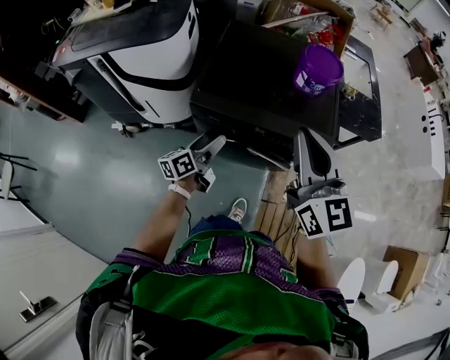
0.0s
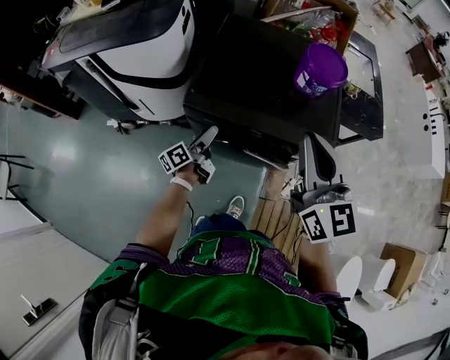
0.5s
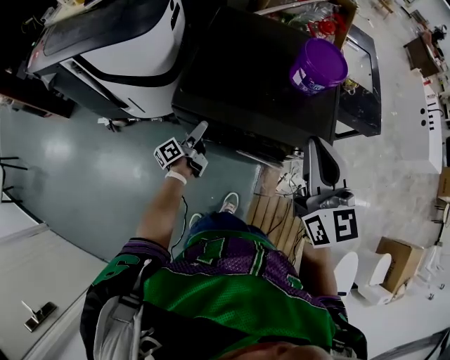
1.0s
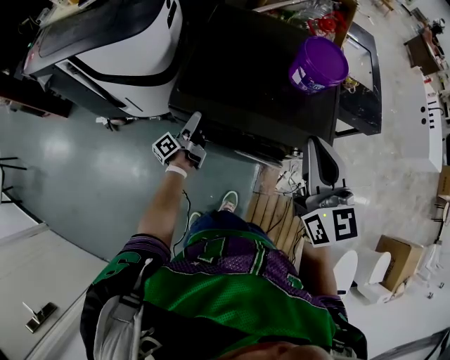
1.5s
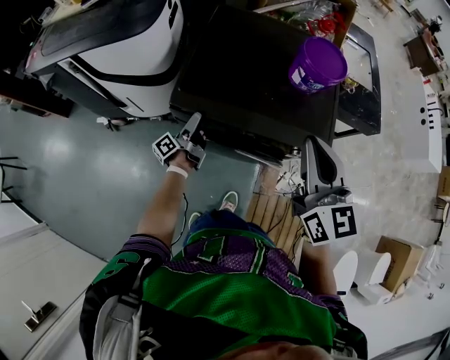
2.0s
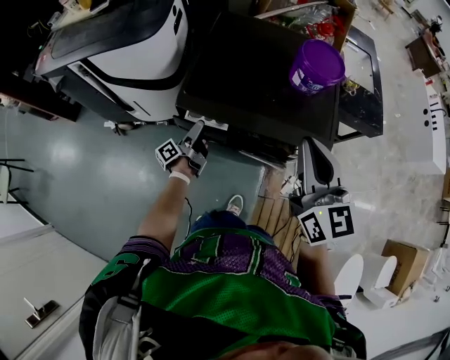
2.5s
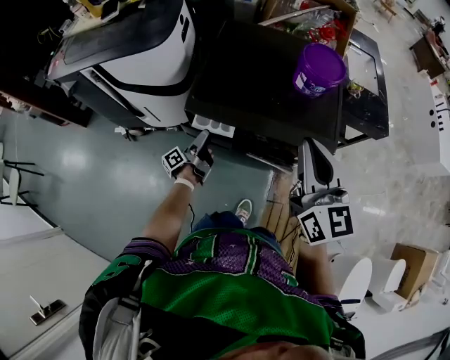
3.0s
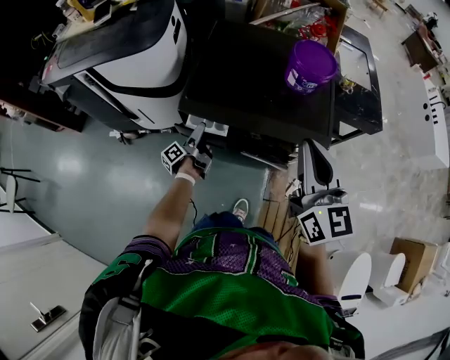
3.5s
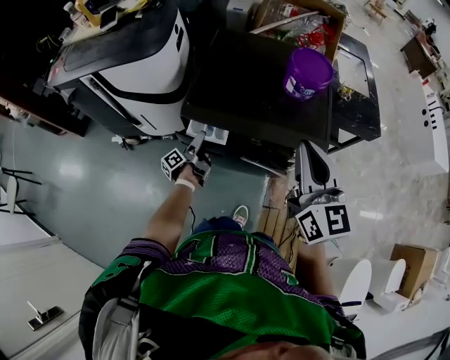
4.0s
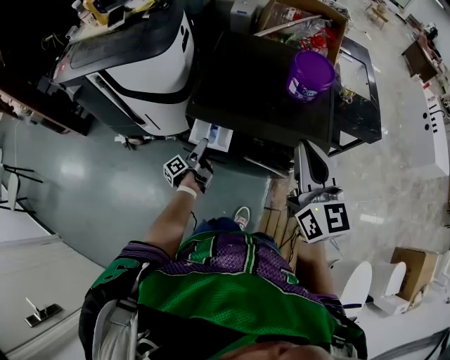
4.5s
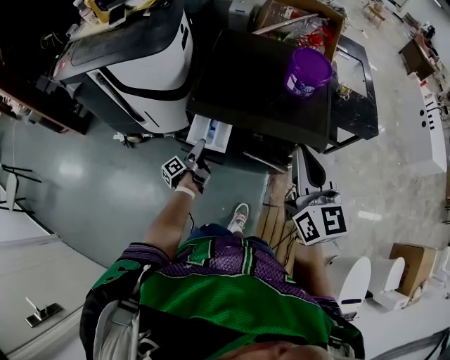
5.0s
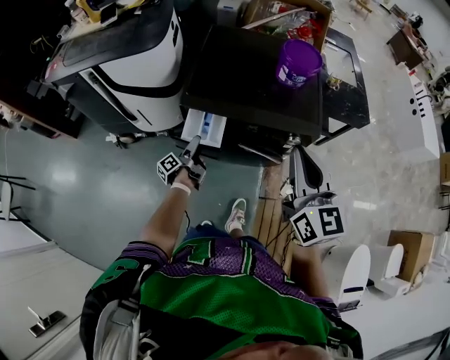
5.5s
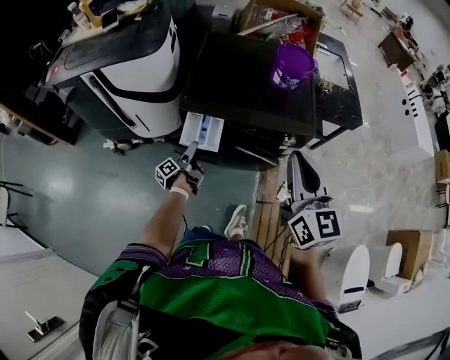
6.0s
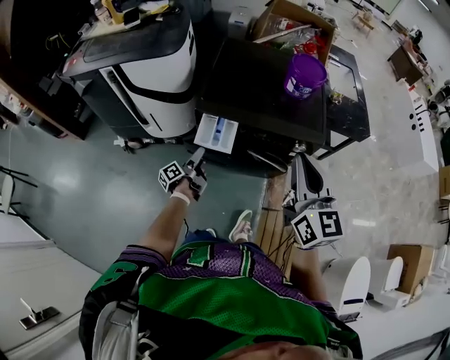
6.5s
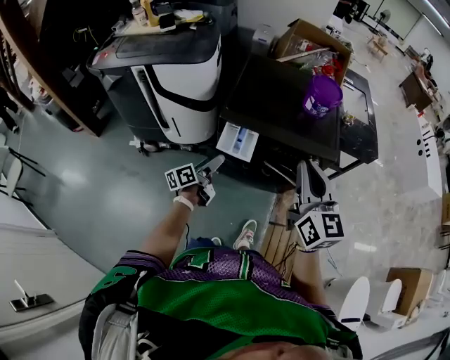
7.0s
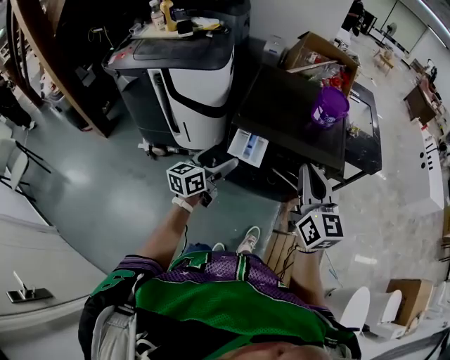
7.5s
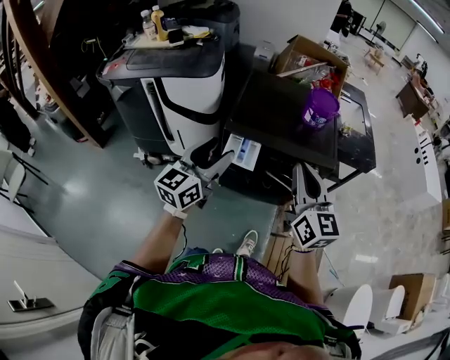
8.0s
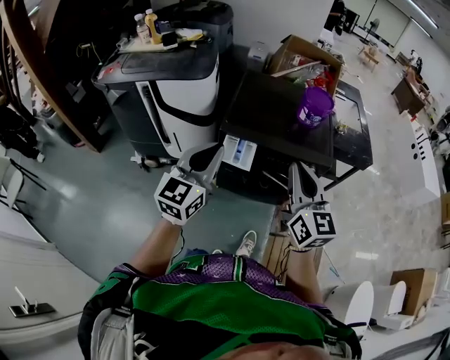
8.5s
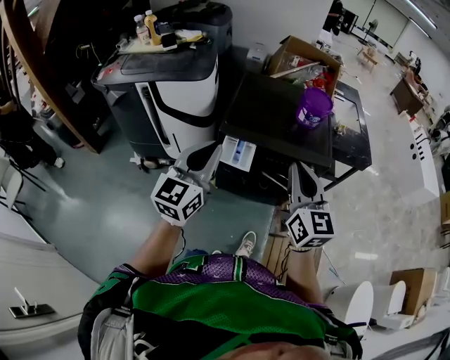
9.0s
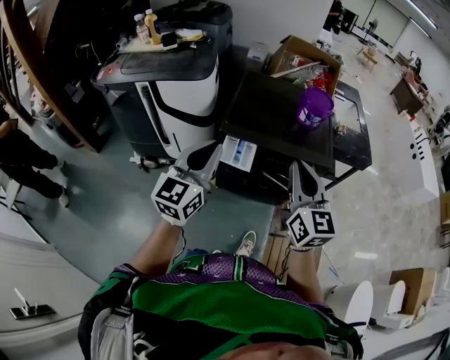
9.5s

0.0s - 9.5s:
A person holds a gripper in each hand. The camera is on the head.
0.0s - 2.0s: The right gripper shifts some 10 cm forward and downward, while the left gripper moves downward and forward, approximately 15 cm, and swivels roughly 40 degrees.
2.0s - 4.0s: Both grippers travel together backward, roughly 5 cm.
4.0s - 5.5s: The grippers both shift backward by about 5 cm.
5.5s - 7.5s: The left gripper shifts about 30 cm upward and backward, and rotates around the line of its fingers by some 60 degrees, clockwise from behind. Meanwhile the right gripper travels to the left and backward by roughly 10 cm.
7.5s - 9.5s: The left gripper travels upward by approximately 15 cm, turns by approximately 30 degrees, and closes.

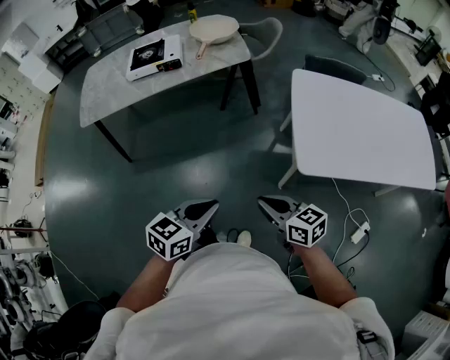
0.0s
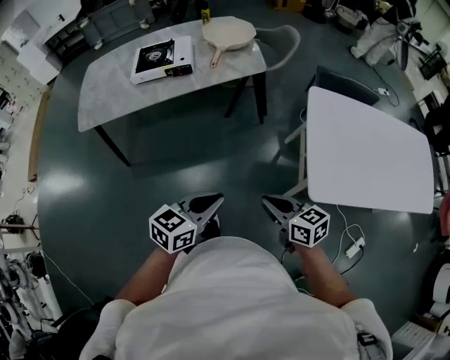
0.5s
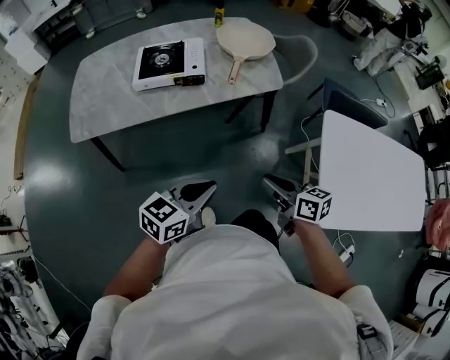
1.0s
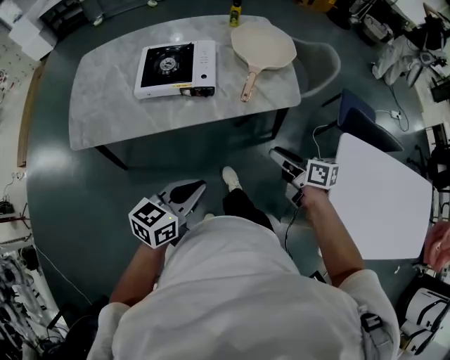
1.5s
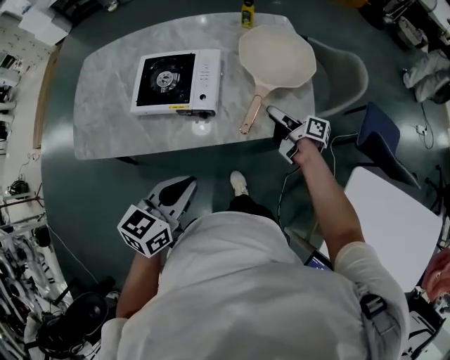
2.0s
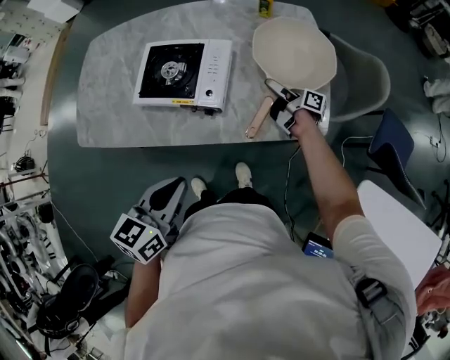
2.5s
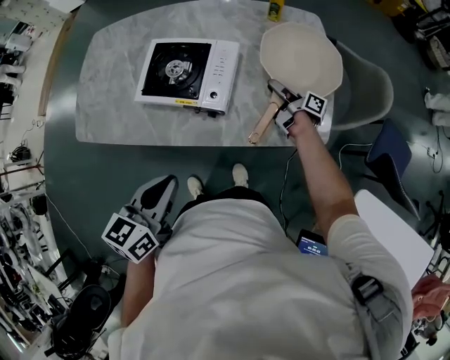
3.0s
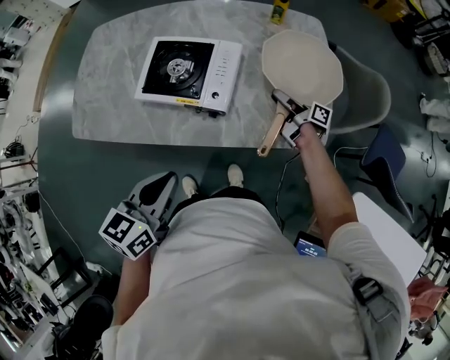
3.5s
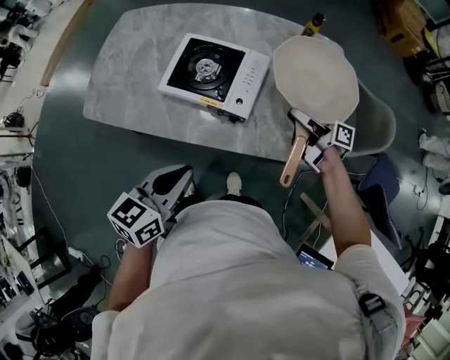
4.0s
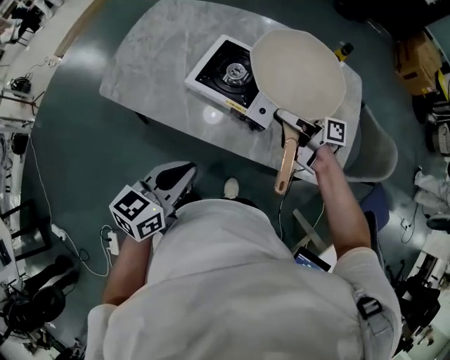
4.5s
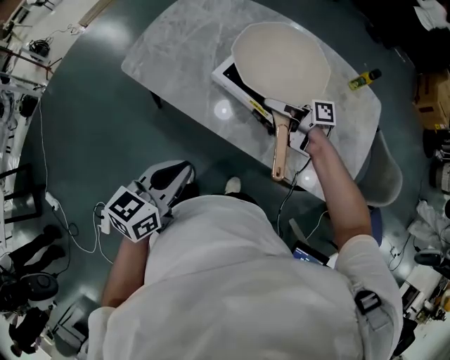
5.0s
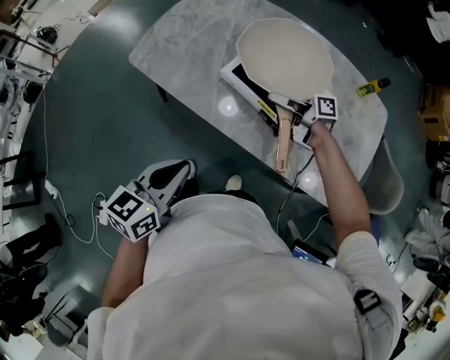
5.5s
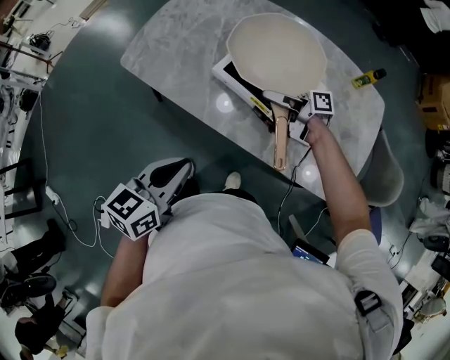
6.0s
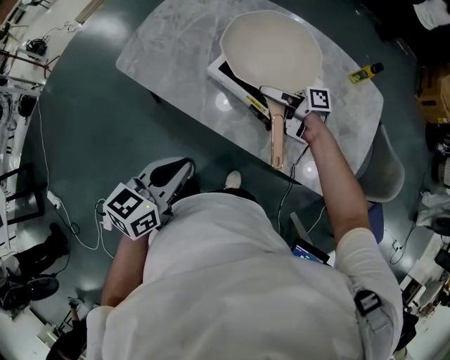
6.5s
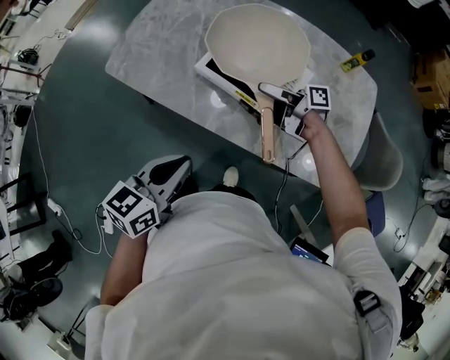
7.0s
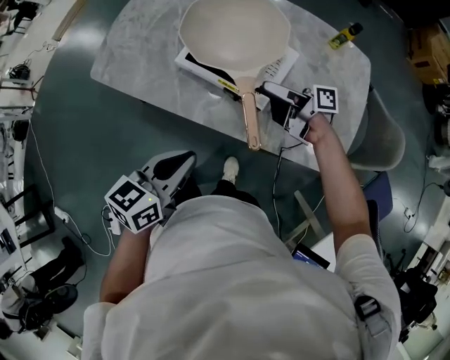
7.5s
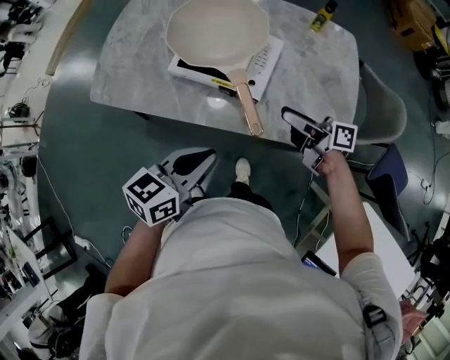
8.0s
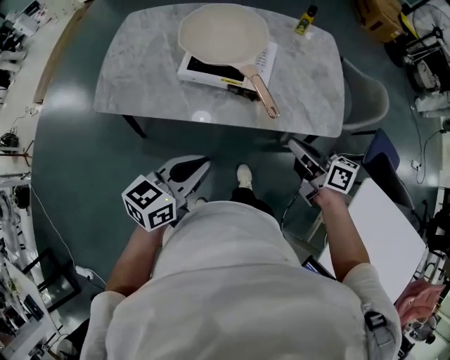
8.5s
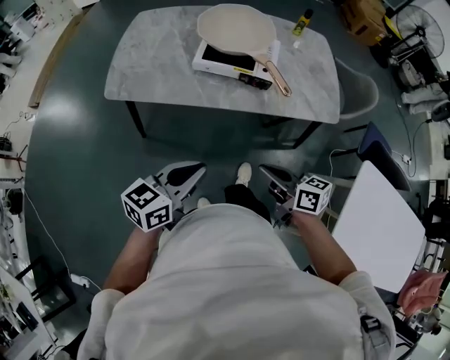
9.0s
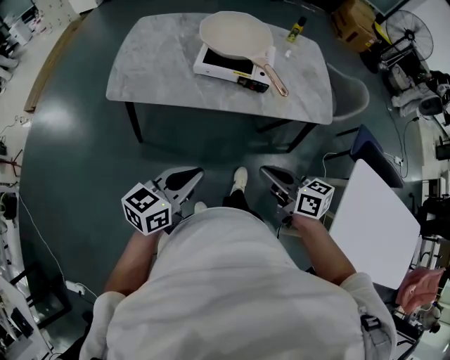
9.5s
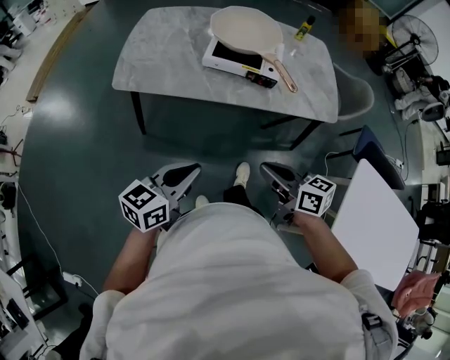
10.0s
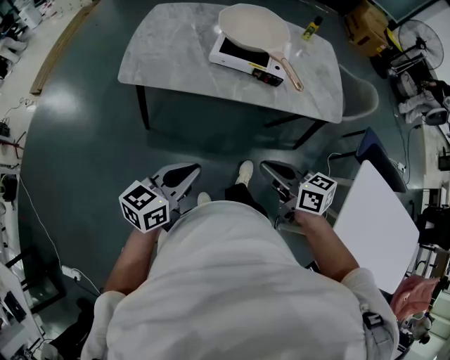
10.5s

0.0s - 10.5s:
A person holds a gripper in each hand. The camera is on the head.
0.0s - 2.0s: Both grippers are carried forward, roughly 70 cm. The left gripper swivels about 20 degrees, while the right gripper rolls clockwise, seen from behind, by approximately 40 degrees, and opens its fingers.
2.0s - 4.0s: The right gripper heads forward, to the left and upward, covering approximately 10 cm, swivels about 20 degrees, and closes; the left gripper moves to the left and forward, some 10 cm.
4.0s - 6.5s: The right gripper shifts by roughly 25 cm, swivels approximately 40 degrees, and opens up, while the left gripper shifts by roughly 10 cm.
6.5s - 8.5s: The left gripper swivels roughly 30 degrees; the right gripper ends up approximately 30 cm from where it was, changes its angle by about 50 degrees, and closes.
8.5s - 10.5s: Both grippers travel together backward and to the left, roughly 25 cm.

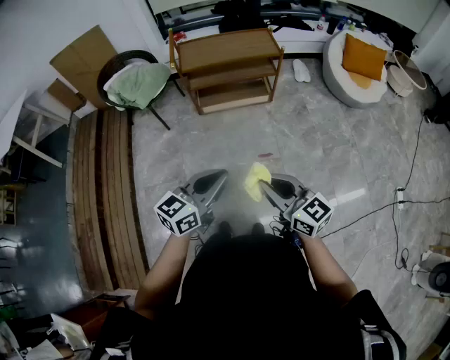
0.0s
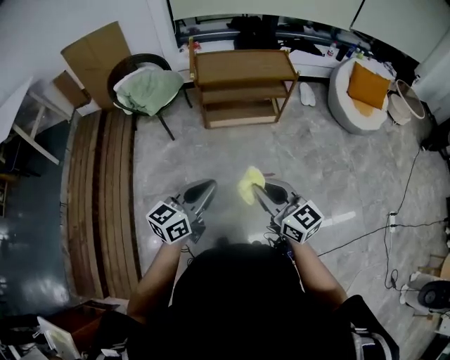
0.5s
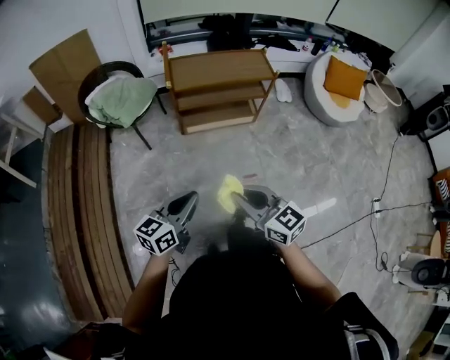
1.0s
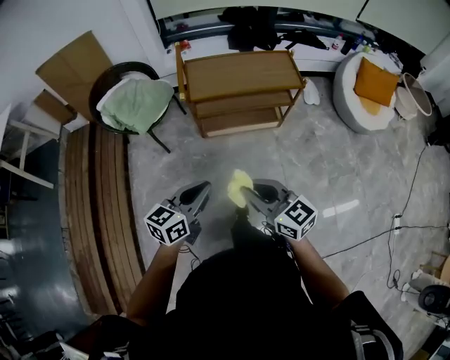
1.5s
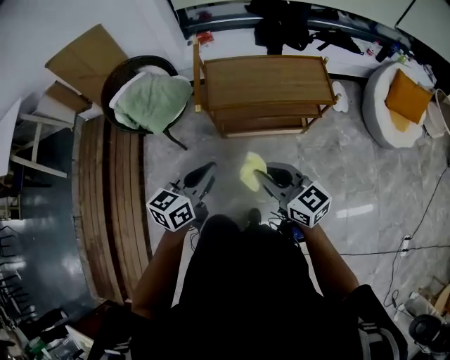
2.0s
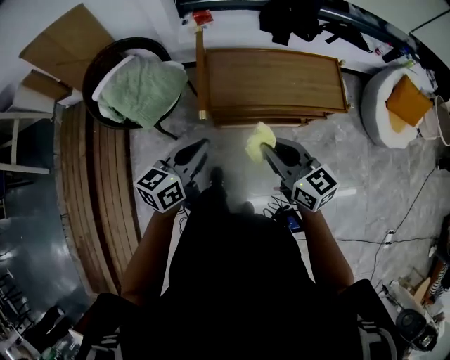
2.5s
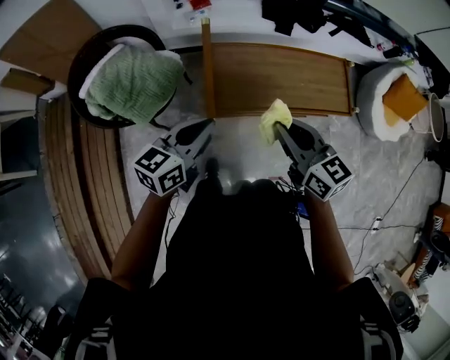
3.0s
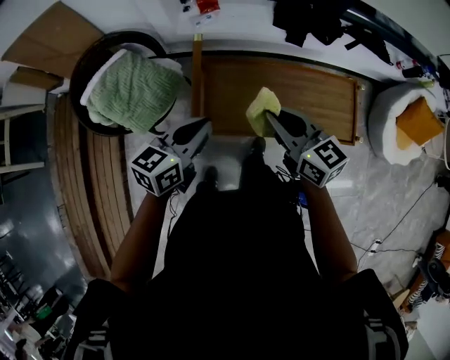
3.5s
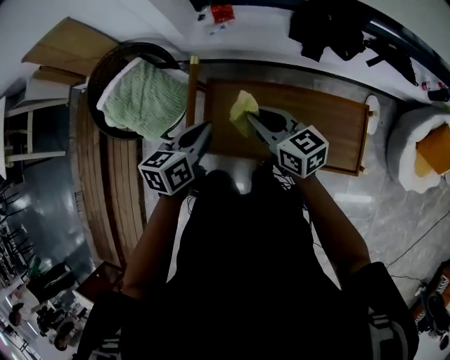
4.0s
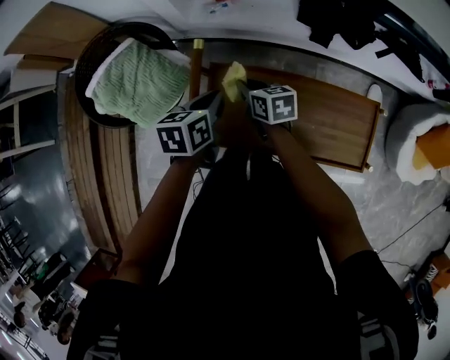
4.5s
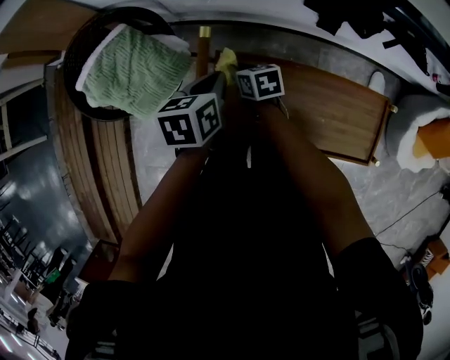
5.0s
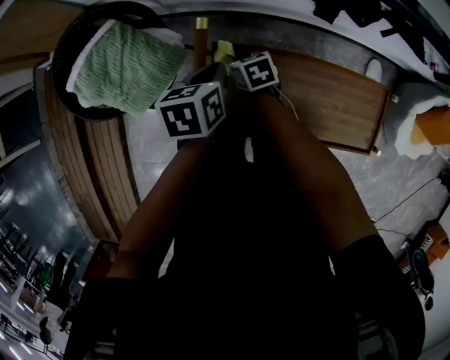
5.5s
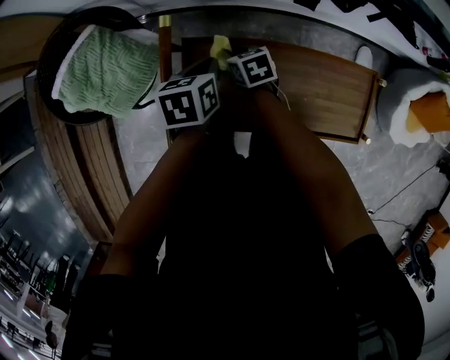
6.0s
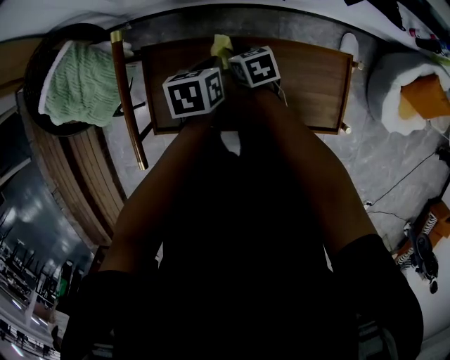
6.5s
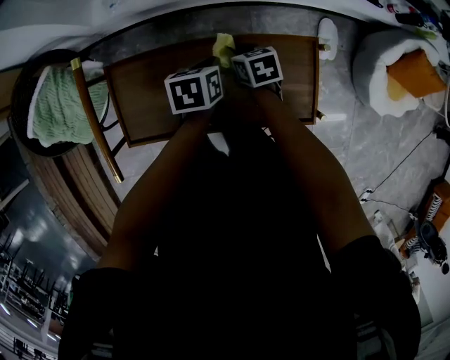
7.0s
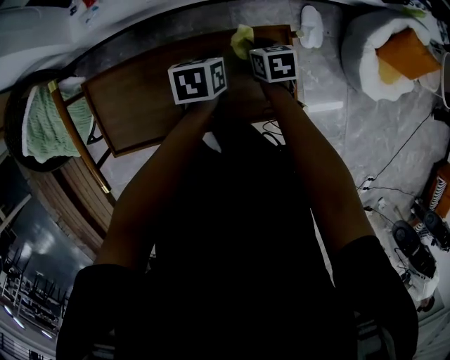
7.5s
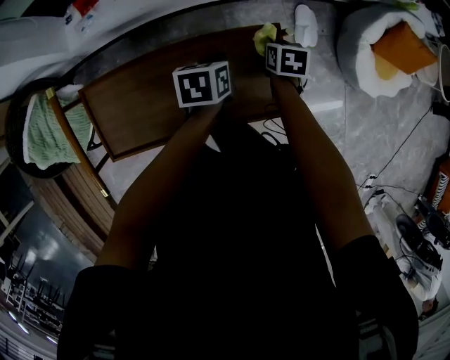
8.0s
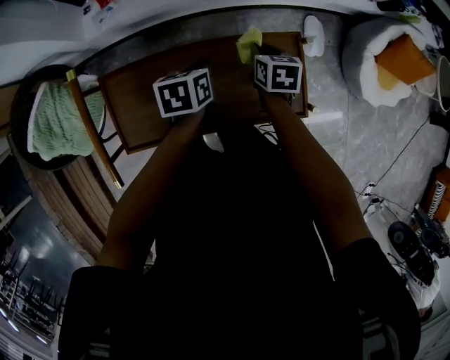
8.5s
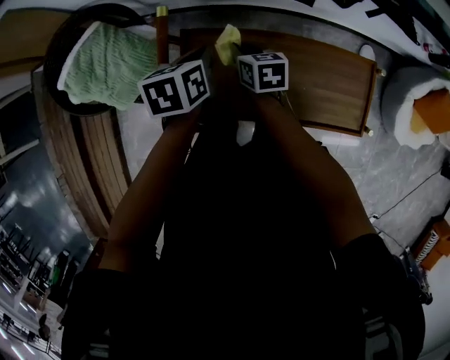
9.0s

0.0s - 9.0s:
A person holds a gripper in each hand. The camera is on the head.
0.0s - 2.0s: The two grippers travel together, forward, approximately 40 cm.
2.0s - 4.5s: The two grippers travel together, forward, some 50 cm. The left gripper turns by about 40 degrees. The right gripper swivels roughly 40 degrees.
4.5s - 7.0s: Both grippers travel together to the right, approximately 25 cm.
7.0s - 9.0s: The right gripper moves approximately 20 cm, while the left gripper shifts by approximately 25 cm.
